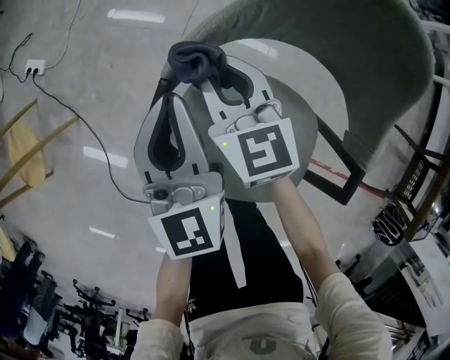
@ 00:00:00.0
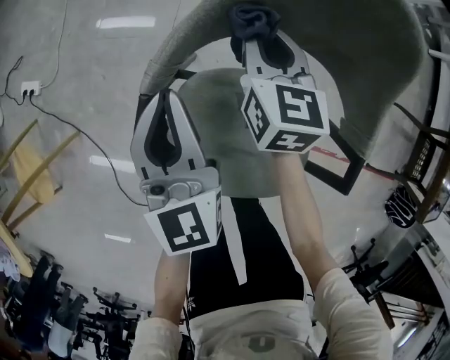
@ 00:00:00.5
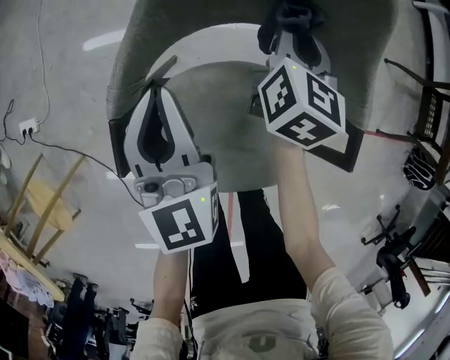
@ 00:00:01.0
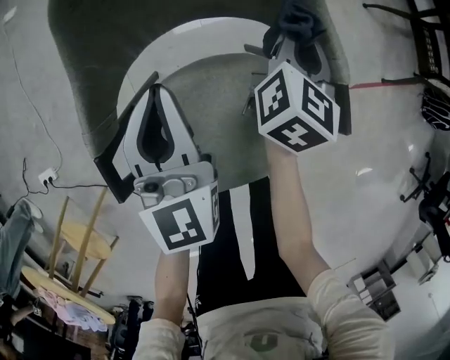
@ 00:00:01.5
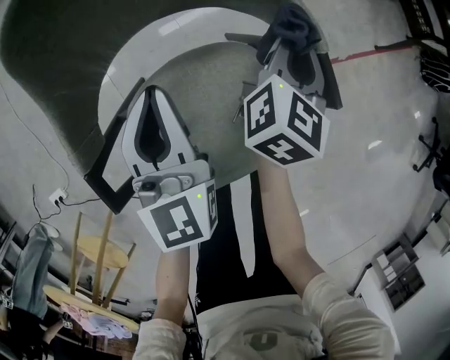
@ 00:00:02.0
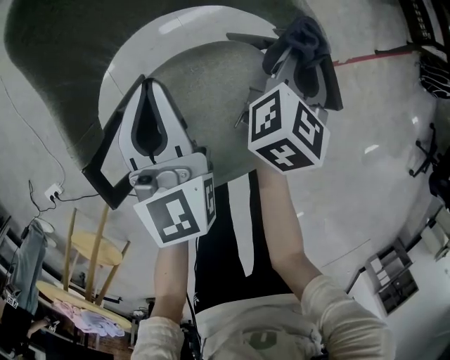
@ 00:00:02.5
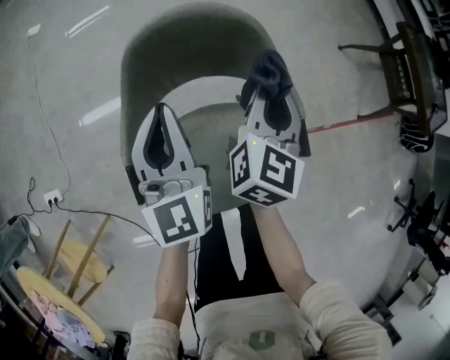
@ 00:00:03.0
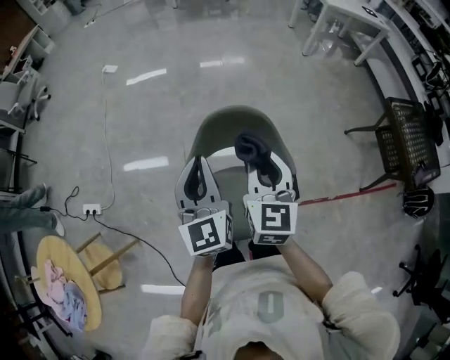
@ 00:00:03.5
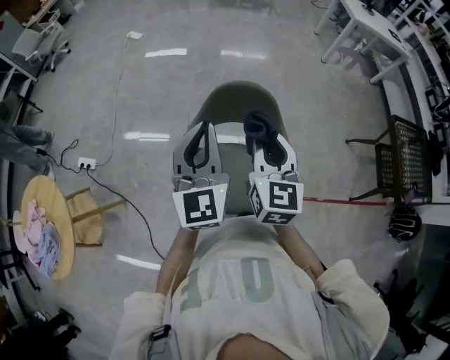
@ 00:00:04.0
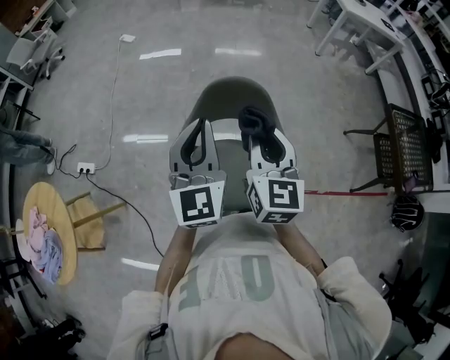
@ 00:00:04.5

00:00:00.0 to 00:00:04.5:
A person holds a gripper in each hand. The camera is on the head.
00:00:00.0 to 00:00:02.0: The right gripper ends up roughly 40 cm from where it was, and turns by approximately 100 degrees. Meanwhile the left gripper moves roughly 20 cm, and turns by about 40 degrees.
00:00:02.0 to 00:00:04.5: The grippers both shift upward by about 40 cm. The left gripper changes its angle by roughly 20 degrees, while the right gripper swivels approximately 60 degrees.

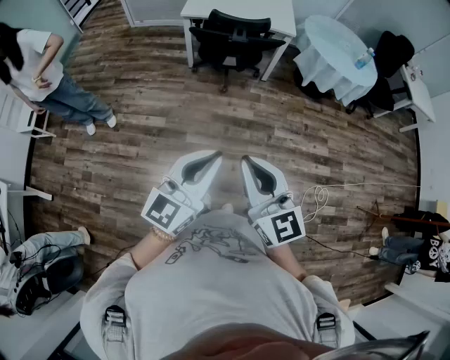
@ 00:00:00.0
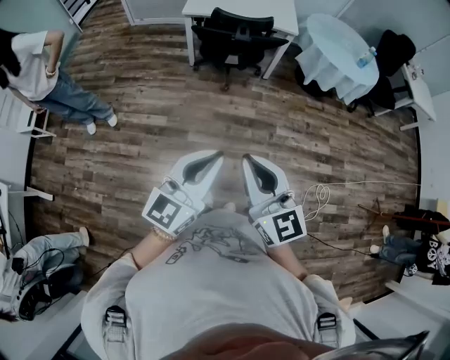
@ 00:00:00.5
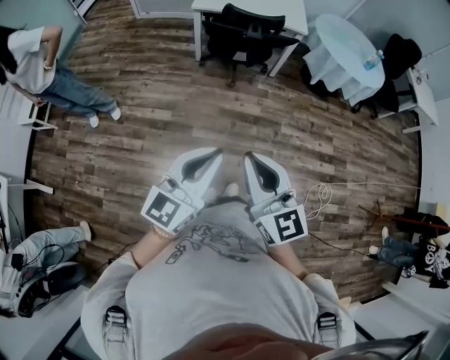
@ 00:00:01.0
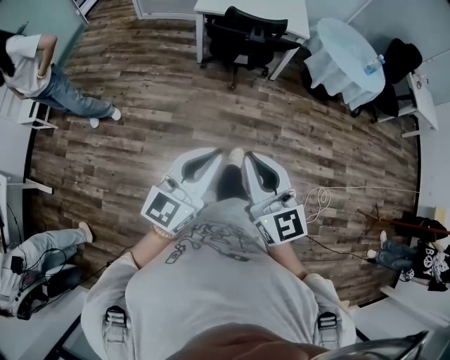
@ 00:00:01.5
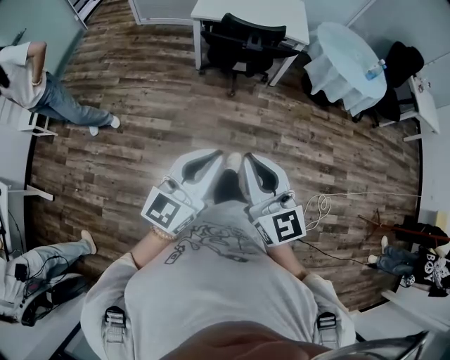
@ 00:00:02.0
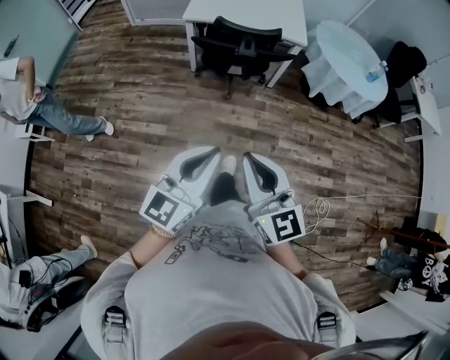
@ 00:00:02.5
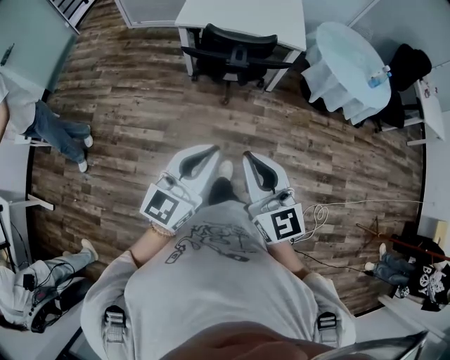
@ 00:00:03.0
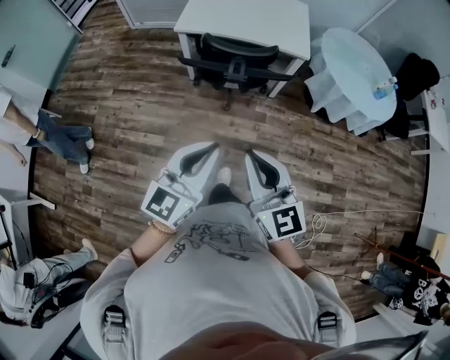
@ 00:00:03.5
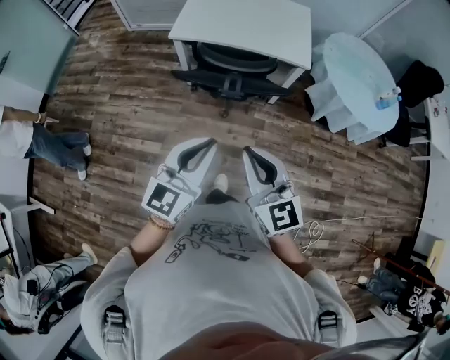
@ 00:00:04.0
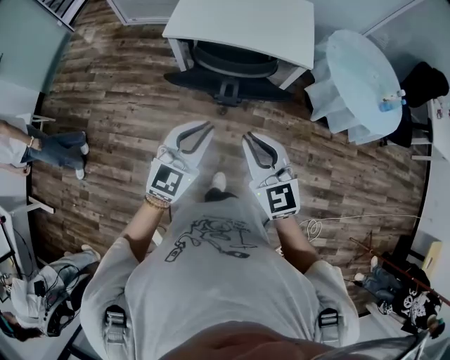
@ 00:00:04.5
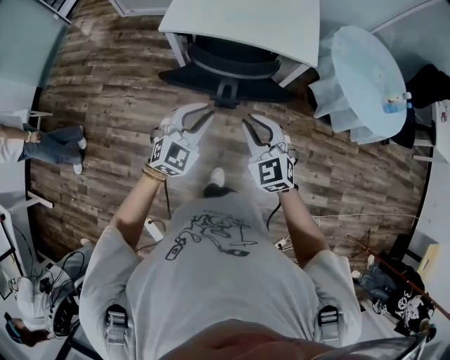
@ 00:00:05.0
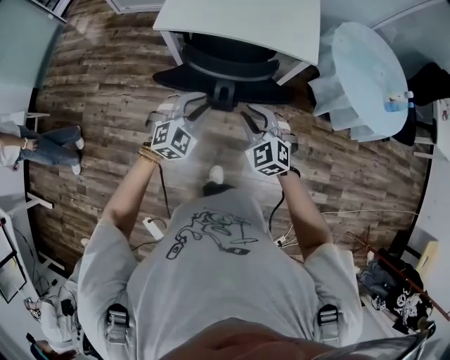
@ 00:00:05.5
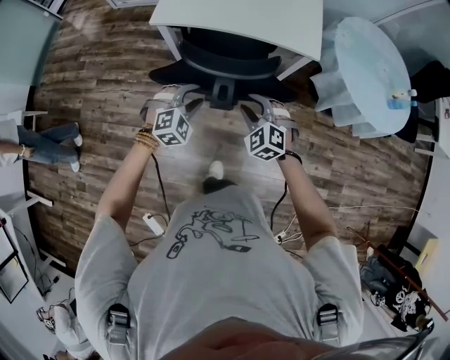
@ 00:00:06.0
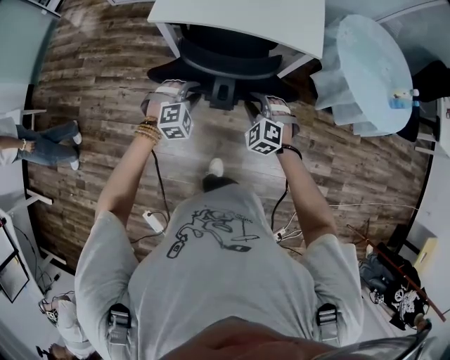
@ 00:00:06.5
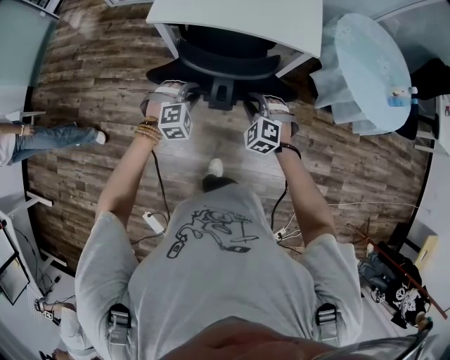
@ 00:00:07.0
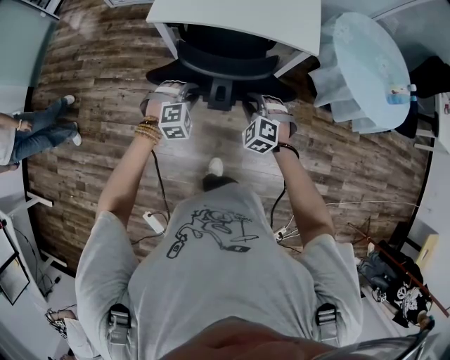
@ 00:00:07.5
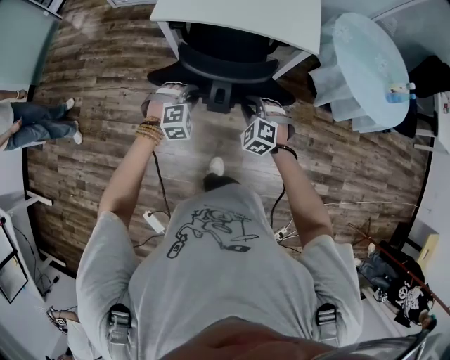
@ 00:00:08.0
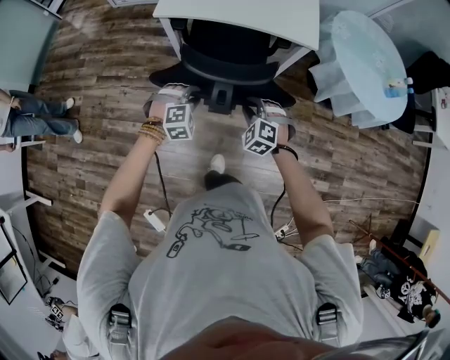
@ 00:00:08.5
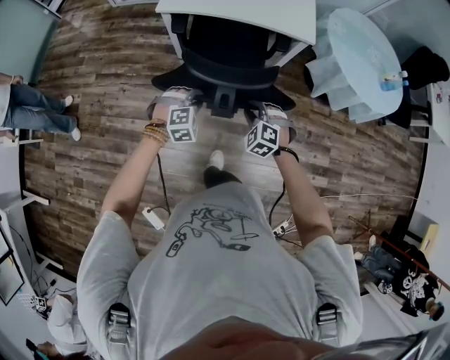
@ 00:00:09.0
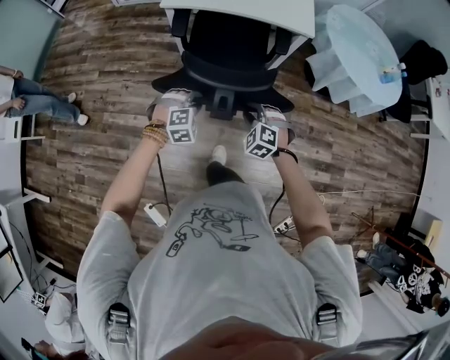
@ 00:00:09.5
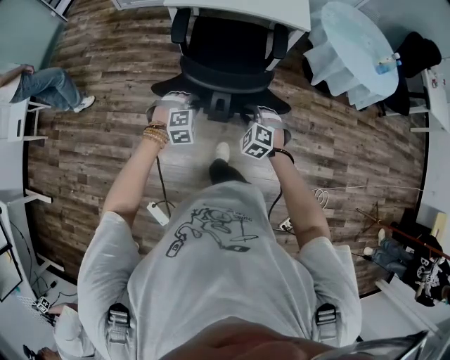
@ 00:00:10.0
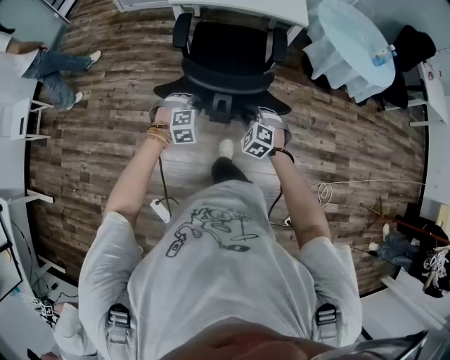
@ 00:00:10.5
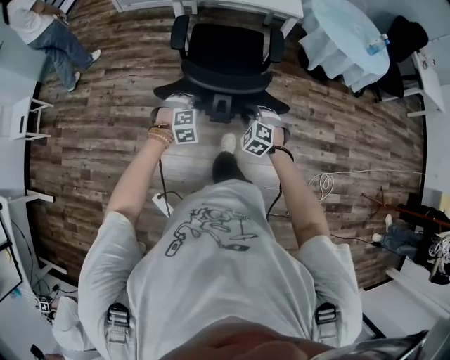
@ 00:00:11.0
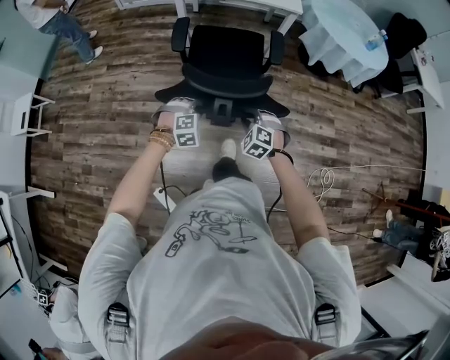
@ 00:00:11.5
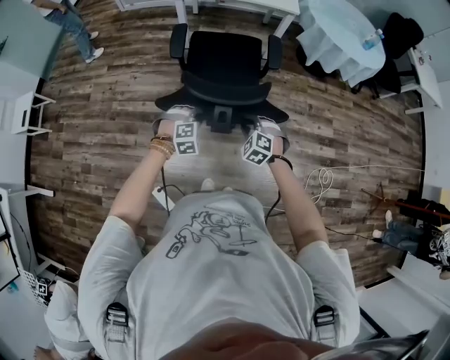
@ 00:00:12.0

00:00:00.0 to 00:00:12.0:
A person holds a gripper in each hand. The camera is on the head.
00:00:00.0 to 00:00:02.0: Both grippers travel together forward and to the left, some 10 cm.
00:00:02.0 to 00:00:04.0: The two grippers travel together, forward, about 40 cm.
00:00:04.0 to 00:00:06.0: The right gripper heads forward and downward, covering approximately 40 cm, tilts its fingers roughly 40 degrees downward, and opens, while the left gripper goes about 40 cm downward and forward, tips its fingers downward by approximately 40 degrees, and opens its fingers.
00:00:06.0 to 00:00:08.0: The right gripper ends up approximately 5 cm from where it was; the left gripper changes place by roughly 5 cm.
00:00:08.0 to 00:00:10.0: The grippers both shift backward by about 25 cm.
00:00:10.0 to 00:00:12.0: Both grippers travel together backward, about 30 cm.

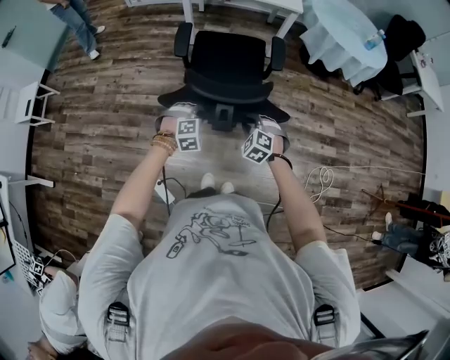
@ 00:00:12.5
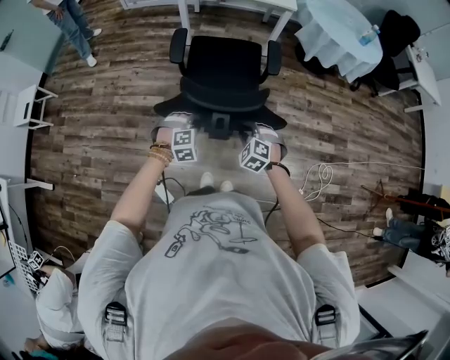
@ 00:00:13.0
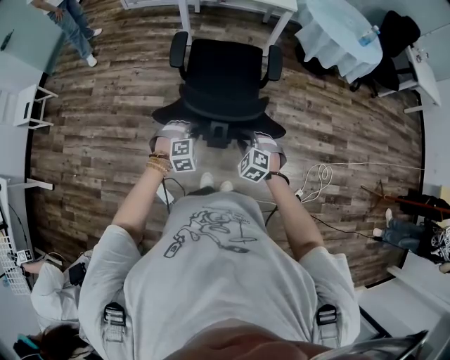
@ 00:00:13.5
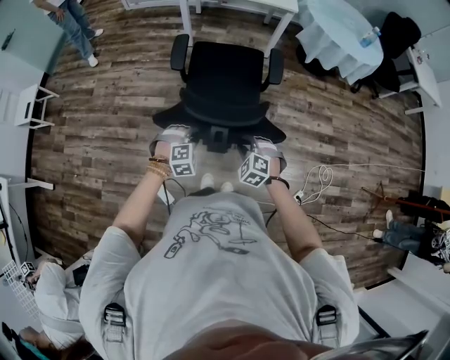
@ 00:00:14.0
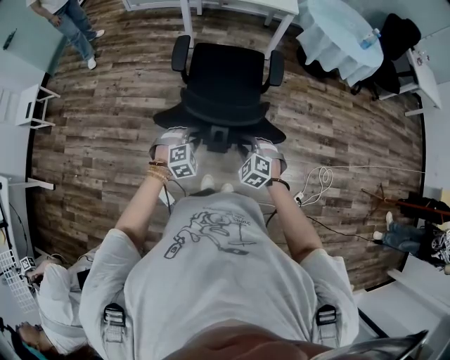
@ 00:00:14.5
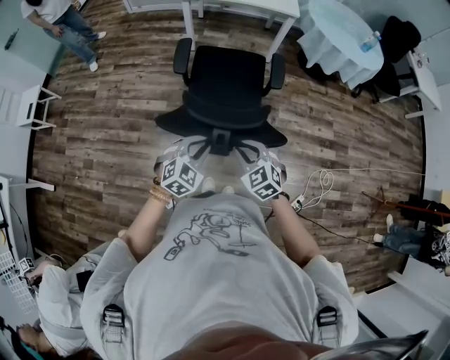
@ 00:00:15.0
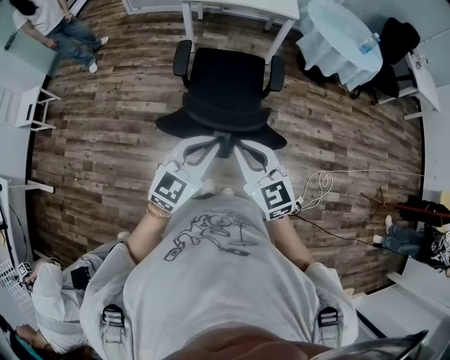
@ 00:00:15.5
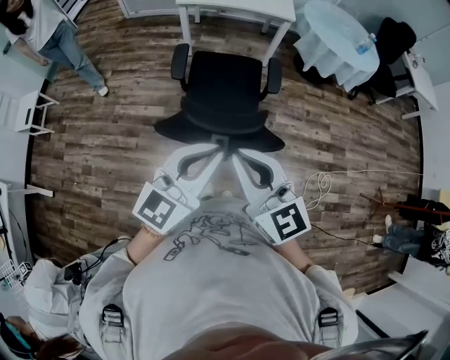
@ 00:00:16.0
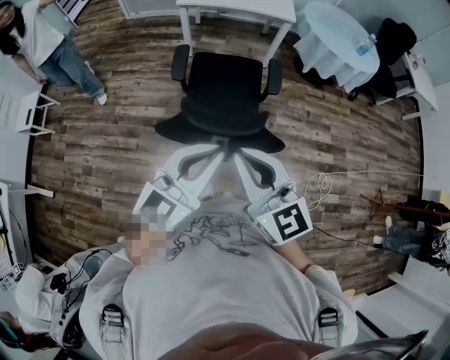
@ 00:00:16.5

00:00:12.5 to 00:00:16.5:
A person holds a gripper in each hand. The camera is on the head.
00:00:12.5 to 00:00:14.5: The two grippers go about 10 cm backward.
00:00:14.5 to 00:00:16.5: Both grippers travel together upward, about 35 cm. The right gripper points its fingers roughly 50 degrees further upward, and closes up. Meanwhile the left gripper tilts its fingers approximately 60 degrees upward, and closes.

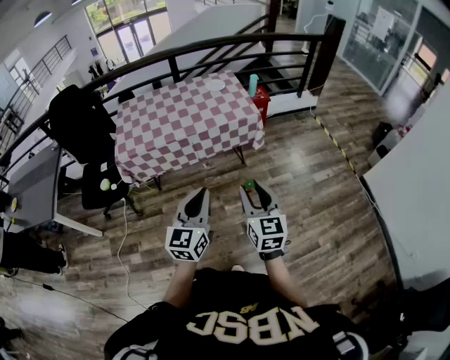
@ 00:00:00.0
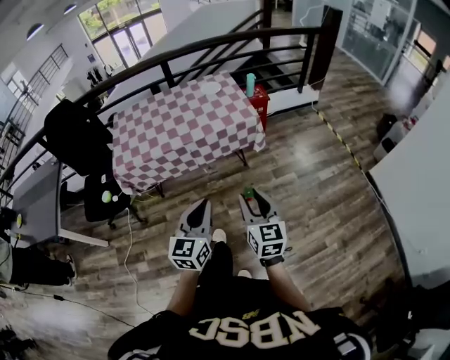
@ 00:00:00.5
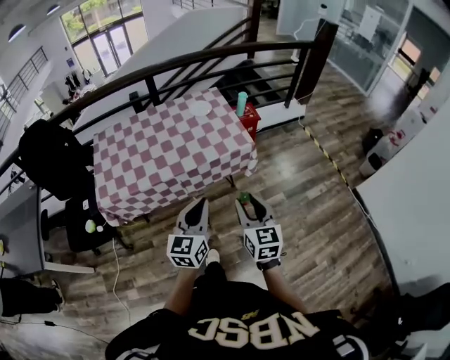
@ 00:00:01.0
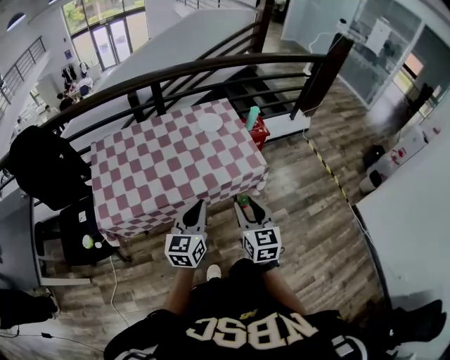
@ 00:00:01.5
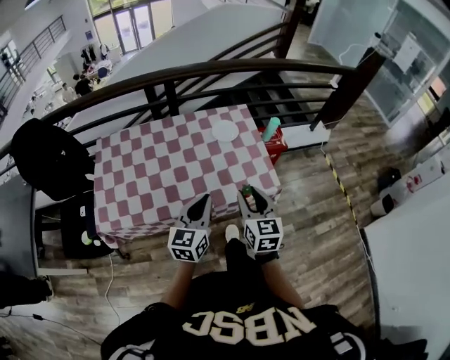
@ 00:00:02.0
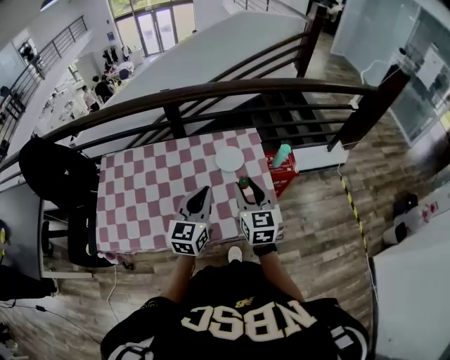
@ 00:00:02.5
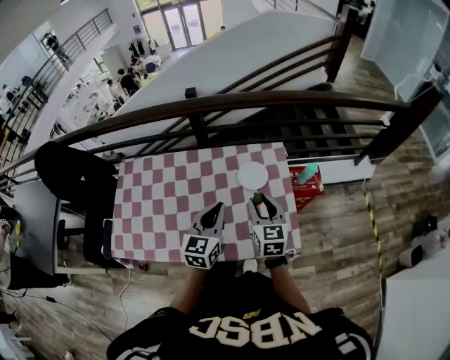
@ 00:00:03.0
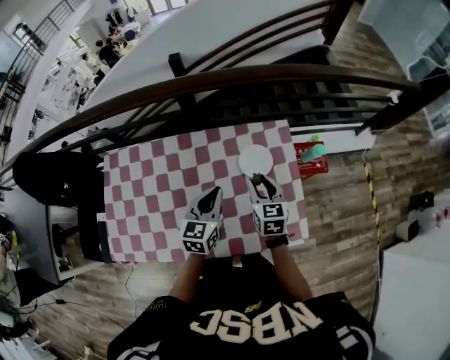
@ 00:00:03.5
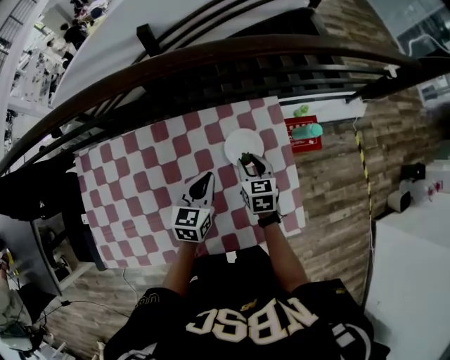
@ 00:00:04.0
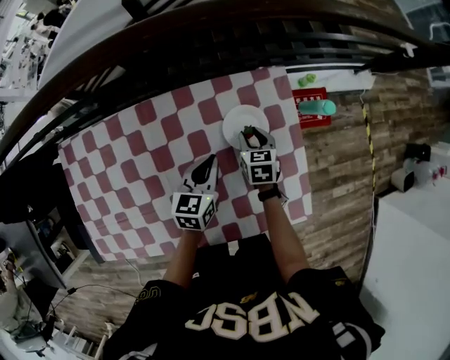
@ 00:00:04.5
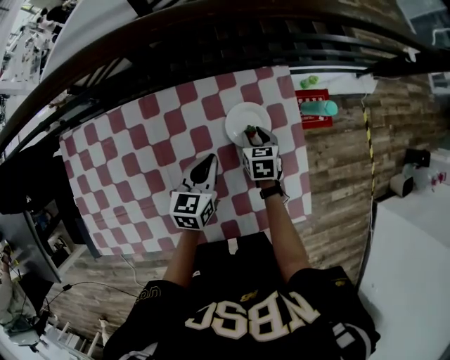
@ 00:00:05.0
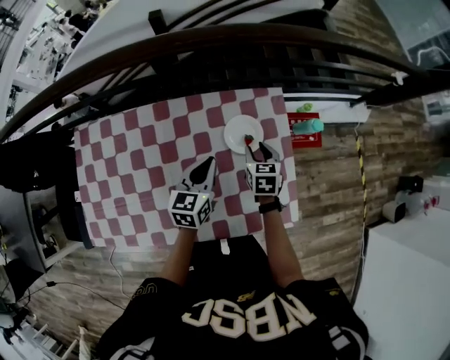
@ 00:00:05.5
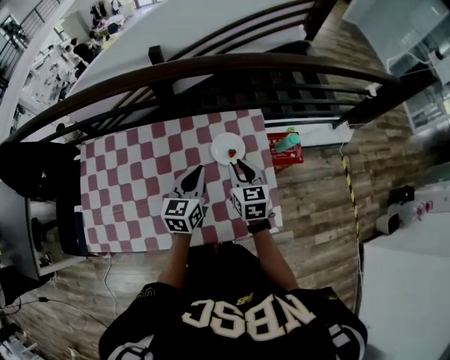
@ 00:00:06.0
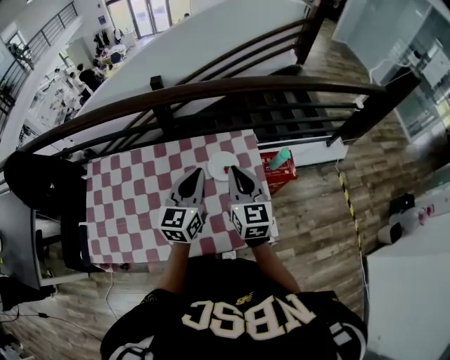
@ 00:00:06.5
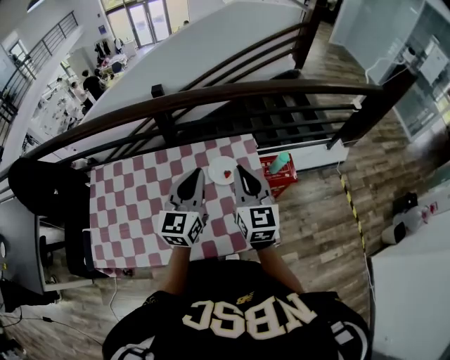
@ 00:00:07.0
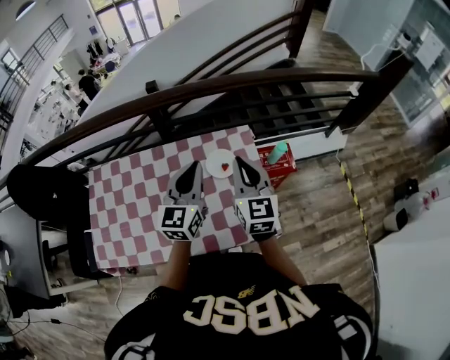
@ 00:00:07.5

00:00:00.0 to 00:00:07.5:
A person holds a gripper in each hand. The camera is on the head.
00:00:00.0 to 00:00:02.0: The pair of grippers is taken forward, approximately 50 cm.
00:00:02.0 to 00:00:04.0: Both grippers travel together forward and downward, some 40 cm. The right gripper rotates about 30 degrees.
00:00:04.0 to 00:00:05.5: The right gripper goes downward and returns, some 10 cm each way.
00:00:05.5 to 00:00:07.5: The two grippers go some 25 cm upward. The left gripper swivels approximately 30 degrees. The right gripper points its fingers roughly 40 degrees further upward, and closes its fingers.
